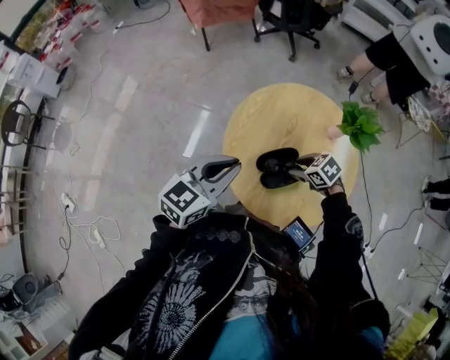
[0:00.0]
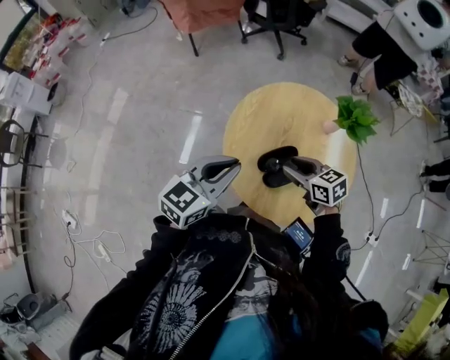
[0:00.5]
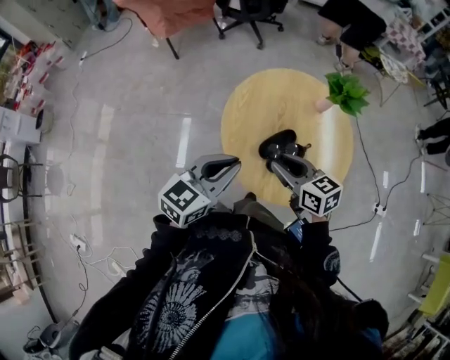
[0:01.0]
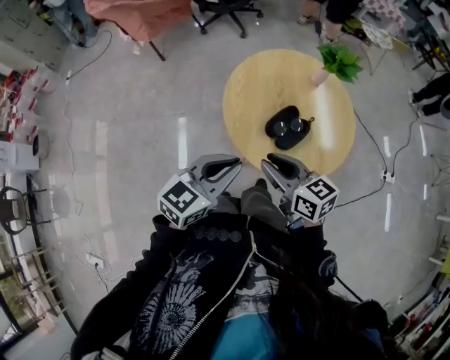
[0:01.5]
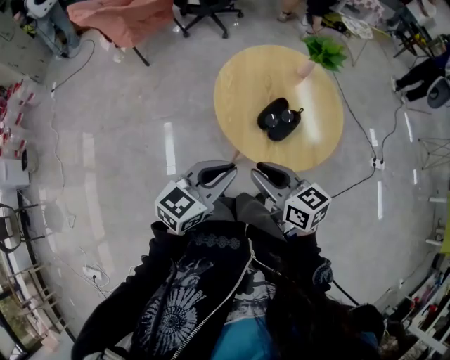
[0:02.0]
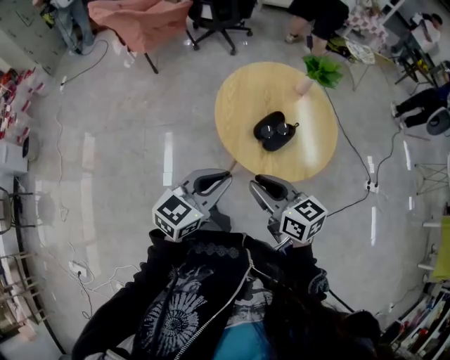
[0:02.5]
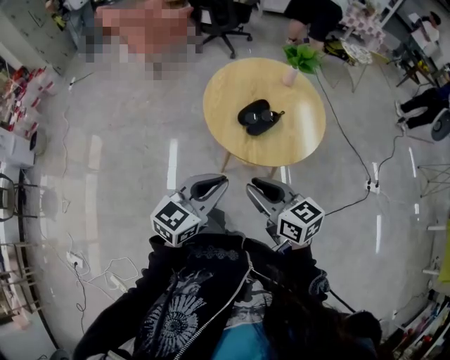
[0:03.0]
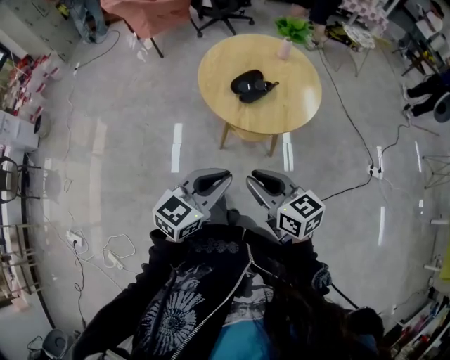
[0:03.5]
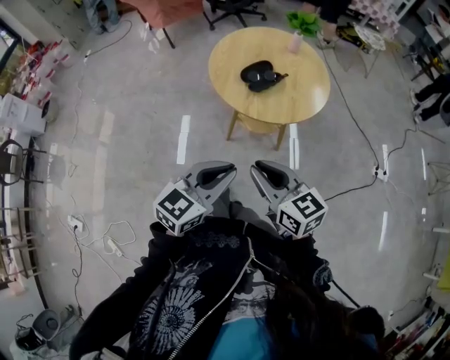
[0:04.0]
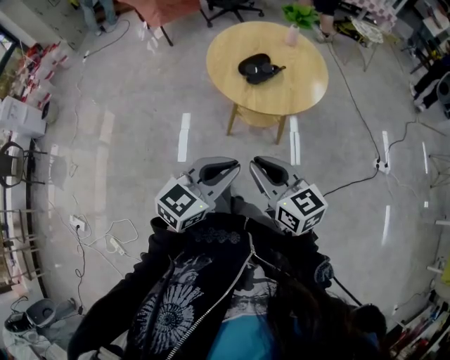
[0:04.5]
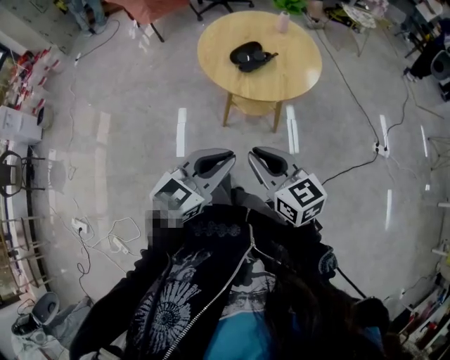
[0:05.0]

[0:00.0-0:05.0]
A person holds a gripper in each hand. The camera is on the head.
0:00.0 to 0:02.5: The left gripper ends up approximately 15 cm from where it was, and changes its angle by roughly 20 degrees. Meanwhile the right gripper ends up about 35 cm from where it was, tilts its fingers roughly 40 degrees upward, and closes its fingers.
0:02.5 to 0:05.0: Both grippers move backward and to the right, about 30 cm.

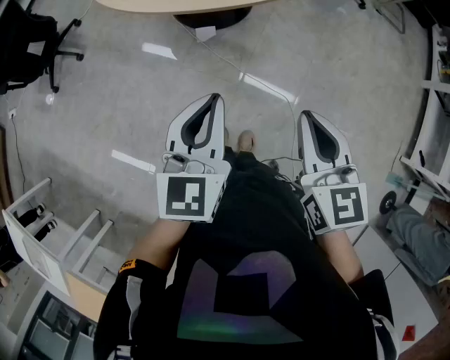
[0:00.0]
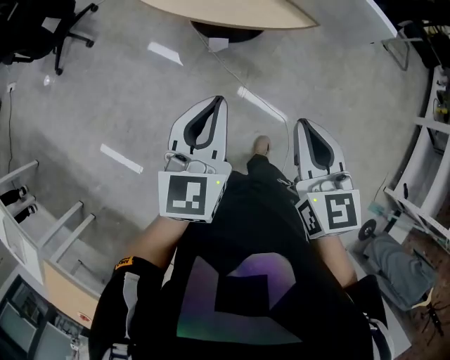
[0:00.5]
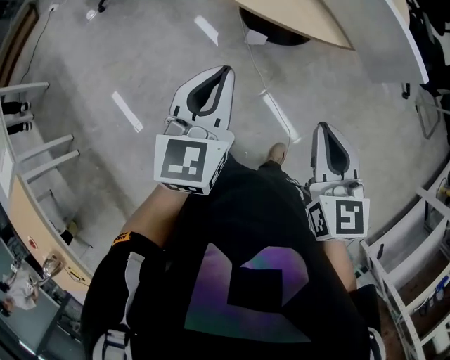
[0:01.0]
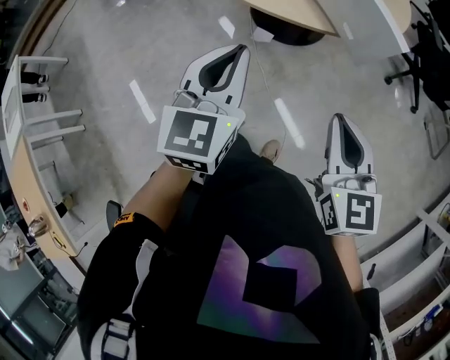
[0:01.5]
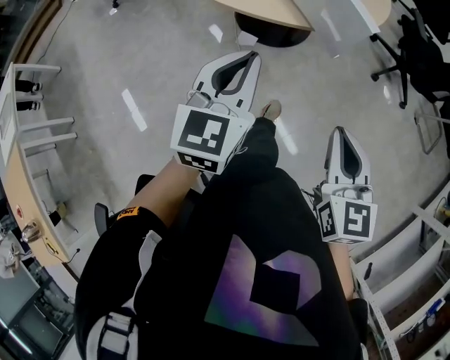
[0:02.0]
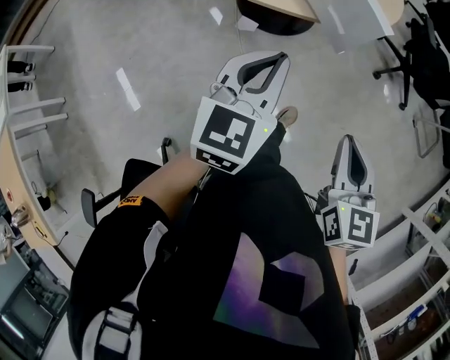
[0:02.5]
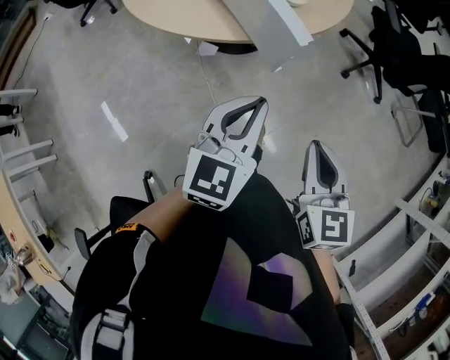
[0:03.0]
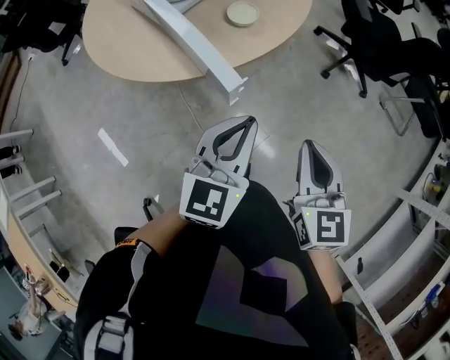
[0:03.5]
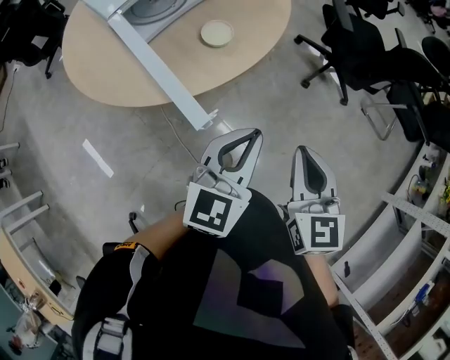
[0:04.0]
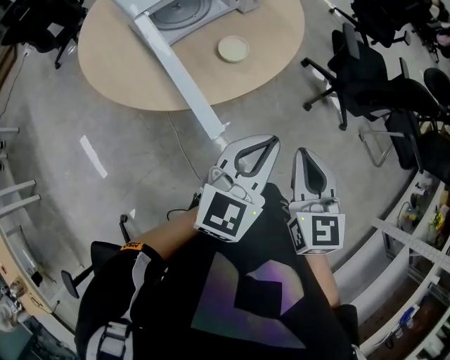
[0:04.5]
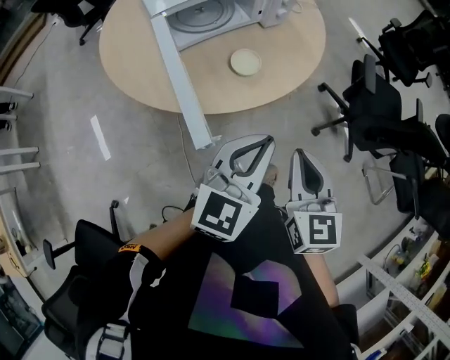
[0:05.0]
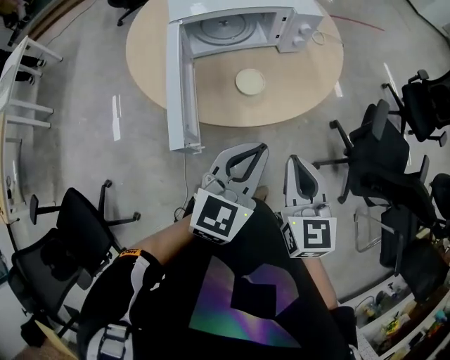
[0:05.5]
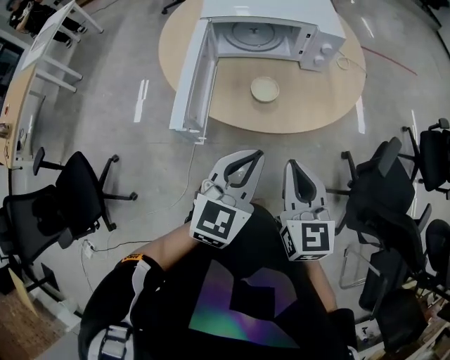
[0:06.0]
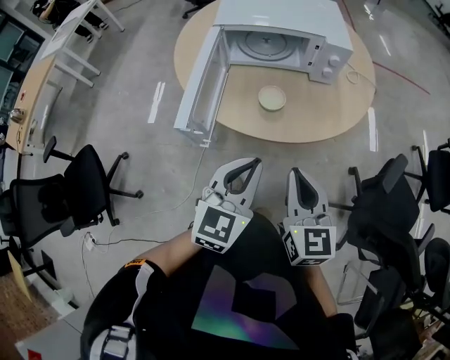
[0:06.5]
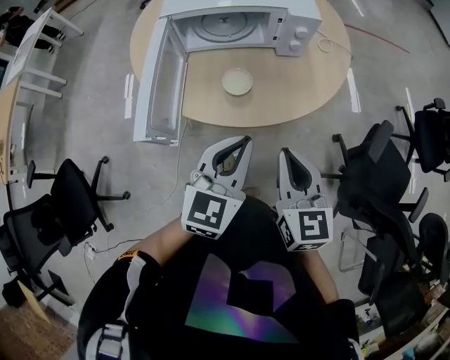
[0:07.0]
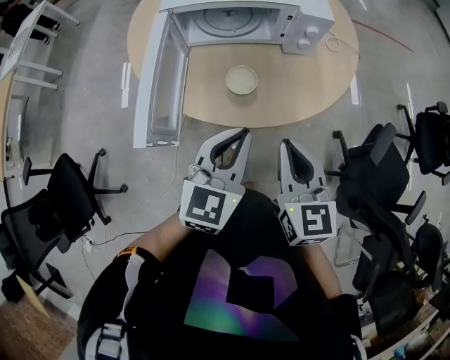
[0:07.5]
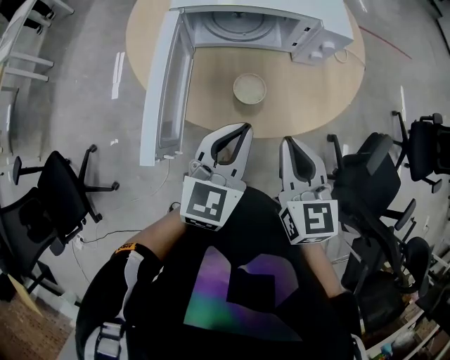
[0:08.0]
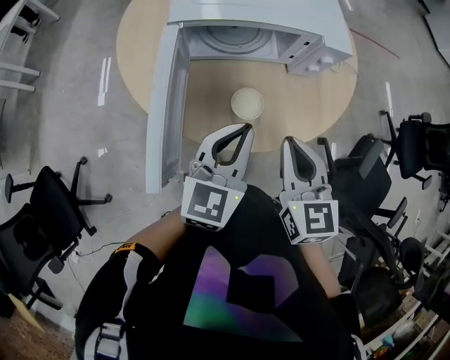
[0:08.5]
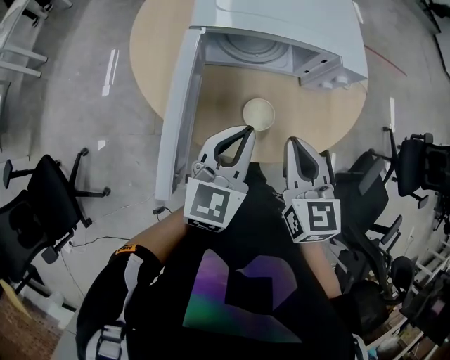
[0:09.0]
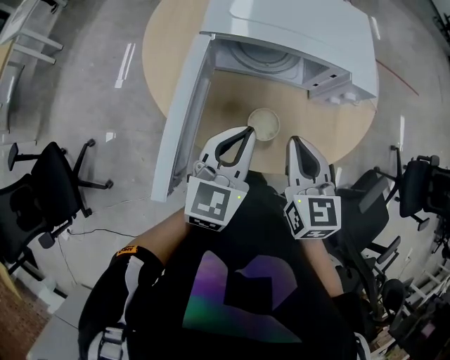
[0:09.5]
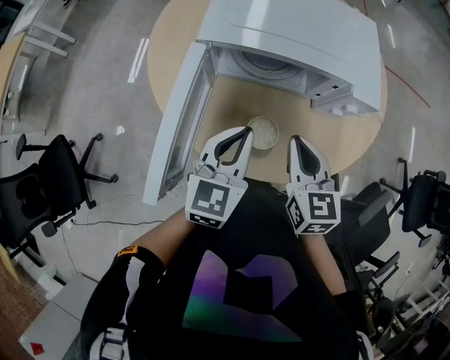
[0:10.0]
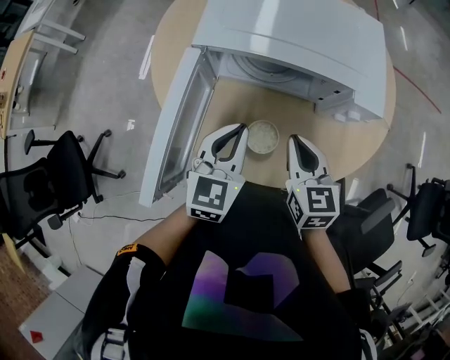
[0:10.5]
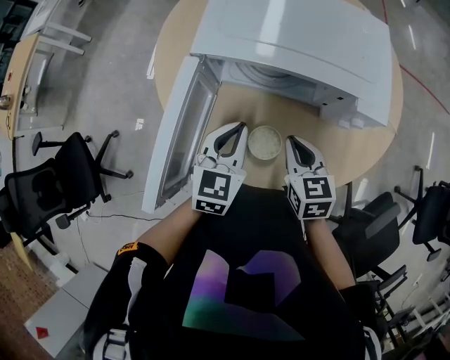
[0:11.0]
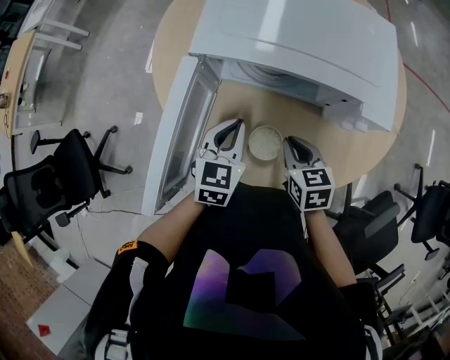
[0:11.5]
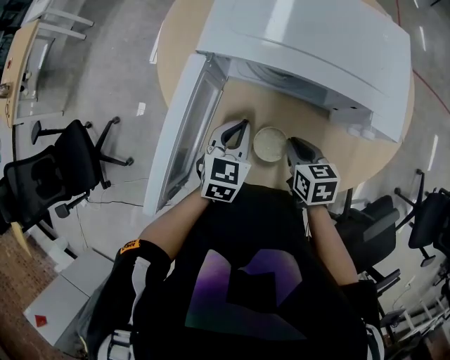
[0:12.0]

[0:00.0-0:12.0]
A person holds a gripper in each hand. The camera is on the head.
0:00.0 to 0:02.0: The left gripper ends up about 25 cm from where it was, and turns by approximately 20 degrees. The right gripper moves approximately 30 cm, and turns by about 20 degrees.
0:02.0 to 0:04.0: The right gripper shifts about 35 cm forward and to the right, while the left gripper shifts approximately 40 cm to the right and forward, and rotates some 20 degrees.
0:04.0 to 0:06.0: The left gripper ends up roughly 15 cm from where it was, and turns by some 50 degrees; the right gripper changes place by about 20 cm, and turns by some 50 degrees.
0:06.0 to 0:08.0: The grippers both shift forward by about 15 cm.
0:08.0 to 0:10.0: The two grippers go about 15 cm forward.
0:10.0 to 0:12.0: The left gripper shifts some 15 cm downward and forward, while the right gripper heads downward, covering some 15 cm, and changes its angle by roughly 30 degrees.

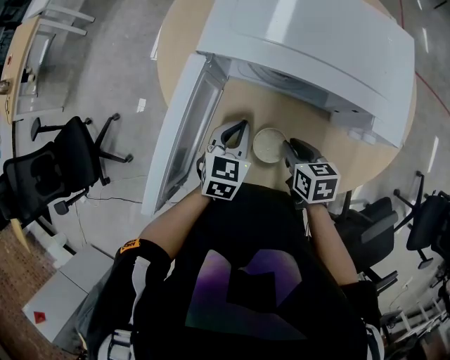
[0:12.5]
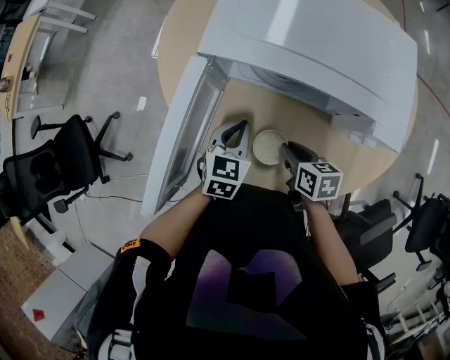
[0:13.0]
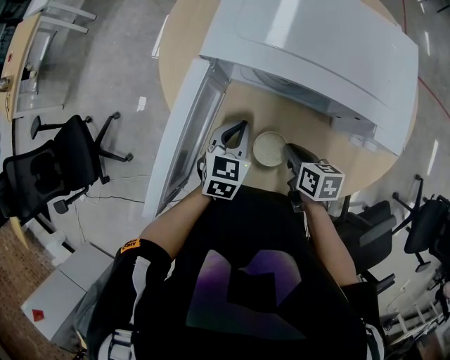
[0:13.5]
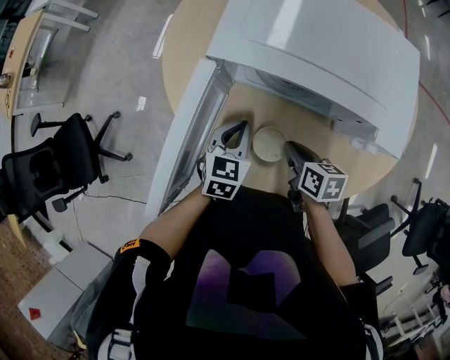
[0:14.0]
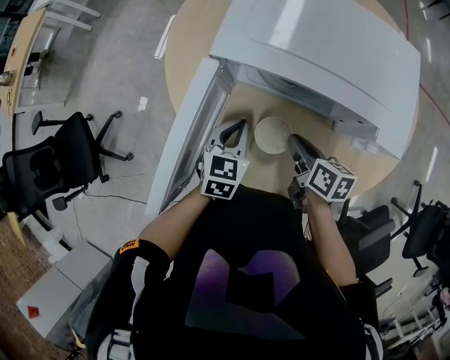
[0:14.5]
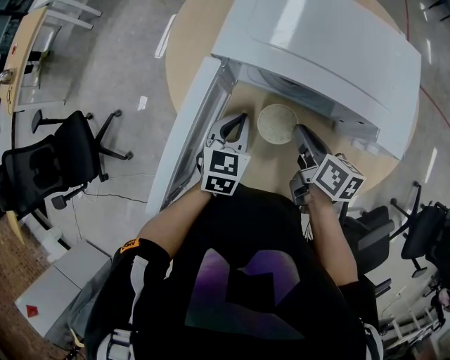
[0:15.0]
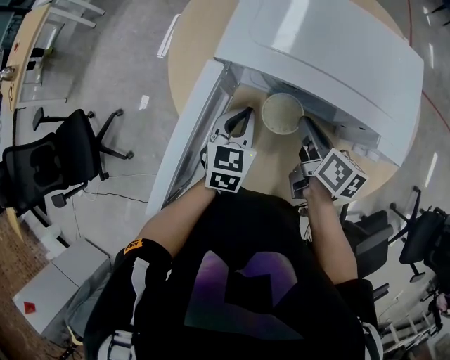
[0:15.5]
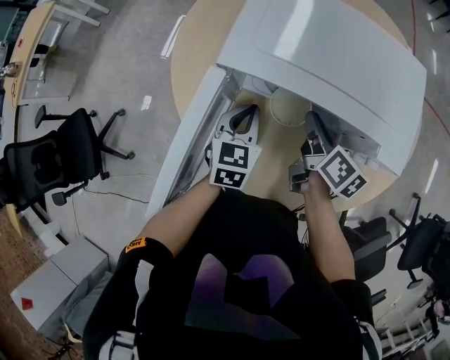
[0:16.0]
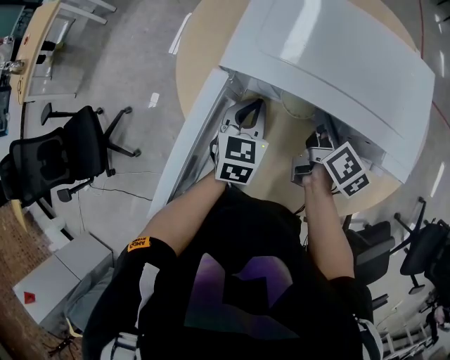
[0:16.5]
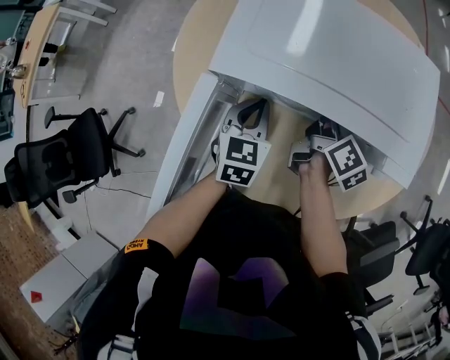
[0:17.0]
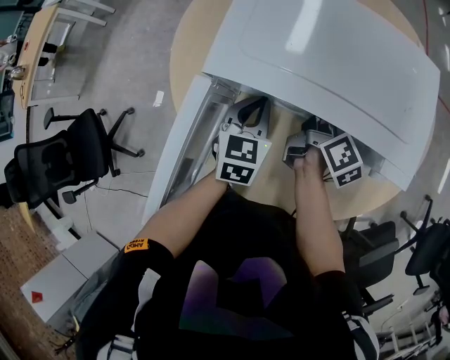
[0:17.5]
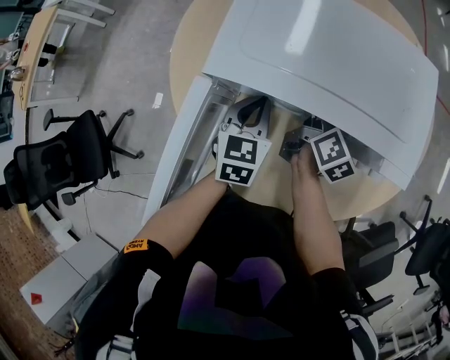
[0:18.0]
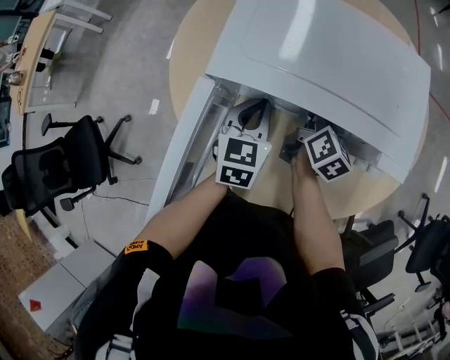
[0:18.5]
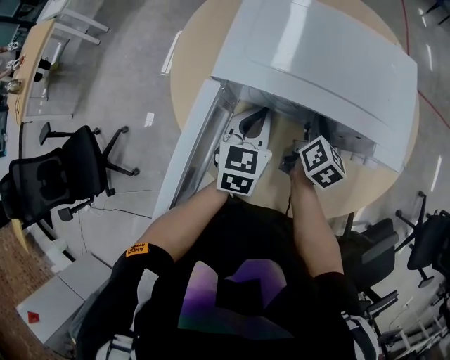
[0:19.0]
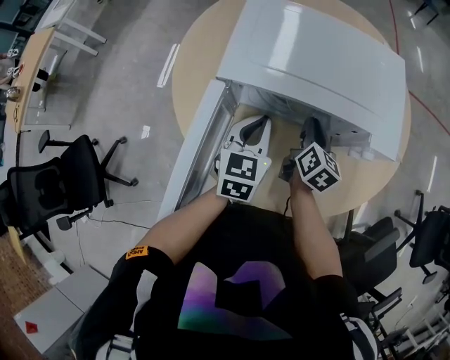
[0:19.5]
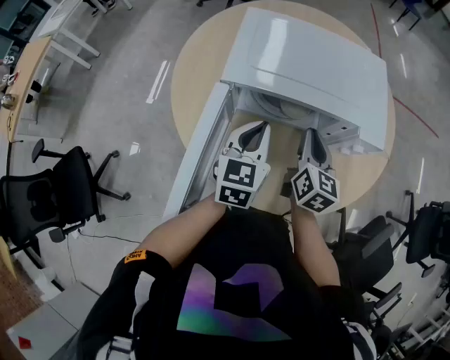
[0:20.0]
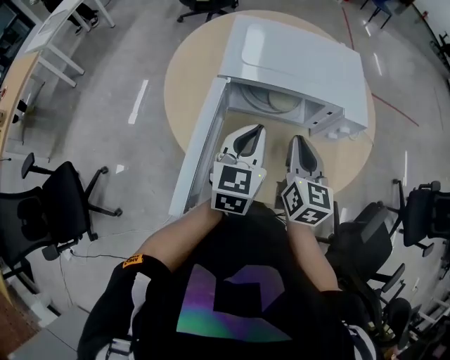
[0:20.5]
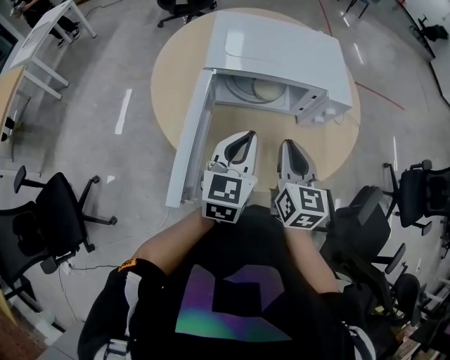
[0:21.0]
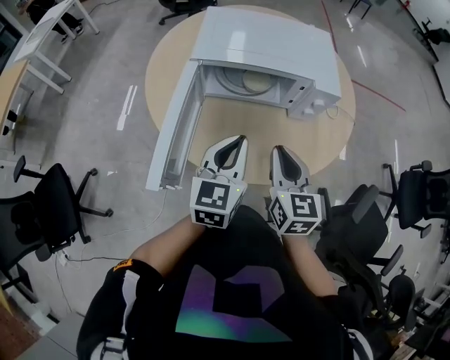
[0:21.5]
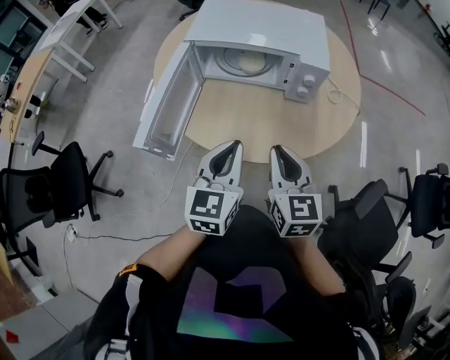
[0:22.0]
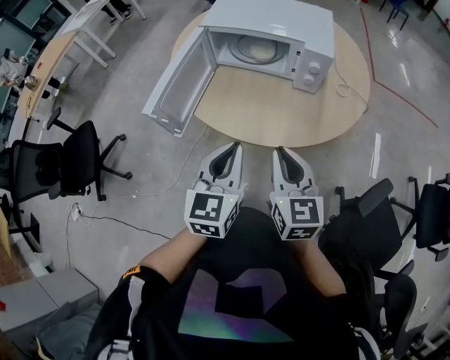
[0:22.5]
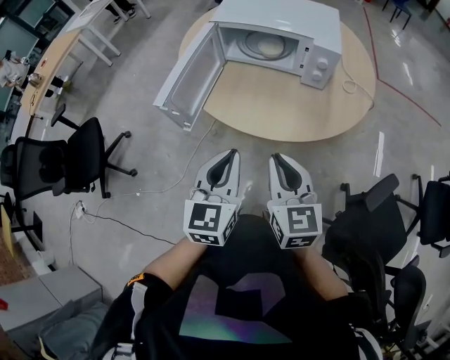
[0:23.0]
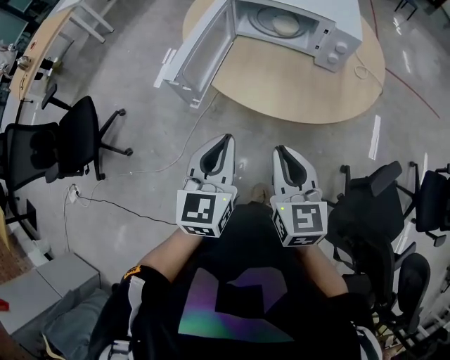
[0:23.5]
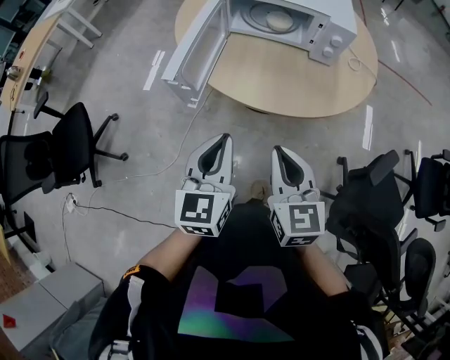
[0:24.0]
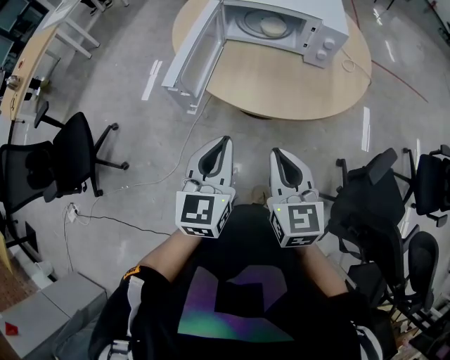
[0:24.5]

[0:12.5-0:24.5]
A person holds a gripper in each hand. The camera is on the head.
0:12.5 to 0:14.5: The right gripper swivels some 20 degrees.
0:14.5 to 0:16.5: The two grippers go roughly 10 cm forward. The right gripper swivels roughly 30 degrees.
0:16.5 to 0:18.5: The right gripper shifts by roughly 5 cm.
0:18.5 to 0:20.5: Both grippers move backward and upward, roughly 25 cm. The right gripper changes its angle by approximately 30 degrees.
0:20.5 to 0:22.5: The grippers both shift backward and to the right by roughly 30 cm. The right gripper swivels about 20 degrees.
0:22.5 to 0:24.5: Both grippers move to the left and backward, about 15 cm.
